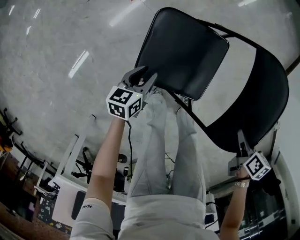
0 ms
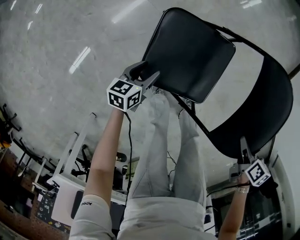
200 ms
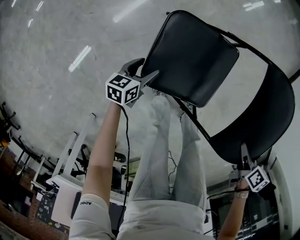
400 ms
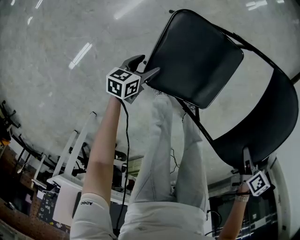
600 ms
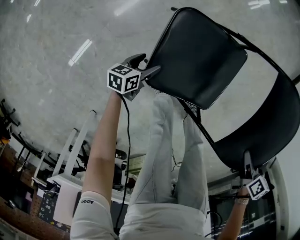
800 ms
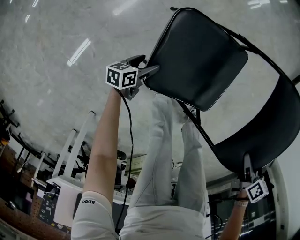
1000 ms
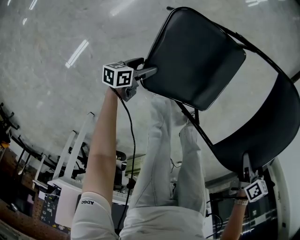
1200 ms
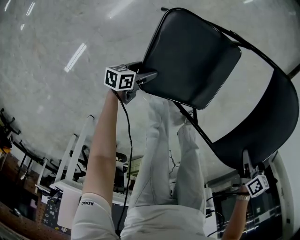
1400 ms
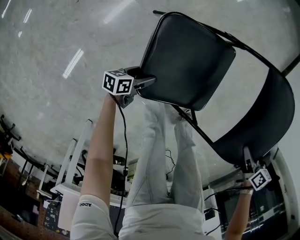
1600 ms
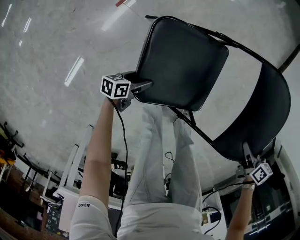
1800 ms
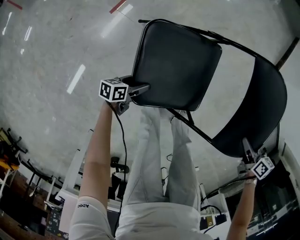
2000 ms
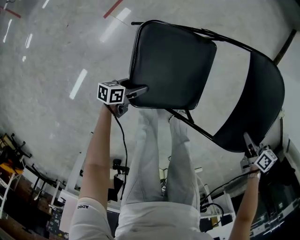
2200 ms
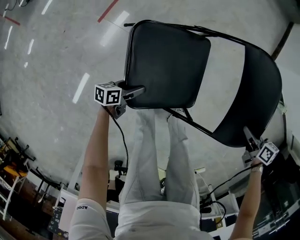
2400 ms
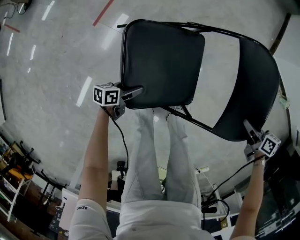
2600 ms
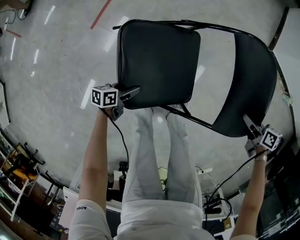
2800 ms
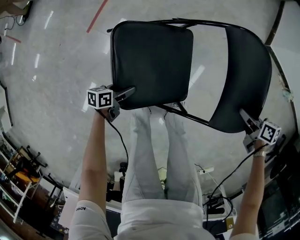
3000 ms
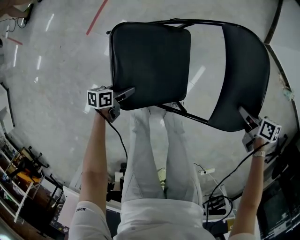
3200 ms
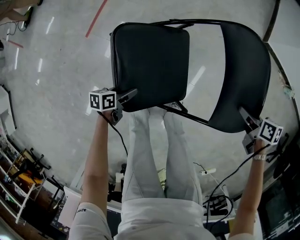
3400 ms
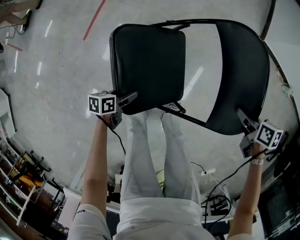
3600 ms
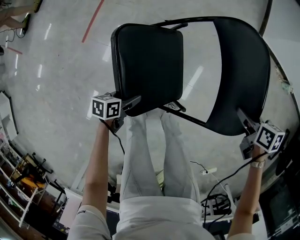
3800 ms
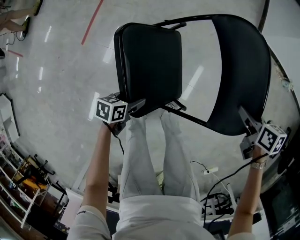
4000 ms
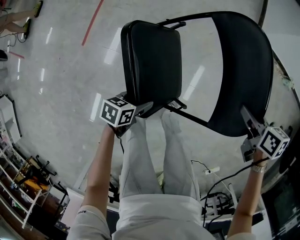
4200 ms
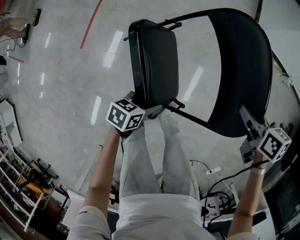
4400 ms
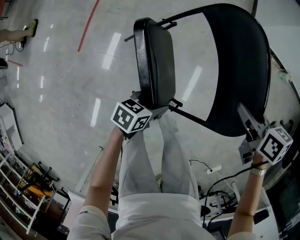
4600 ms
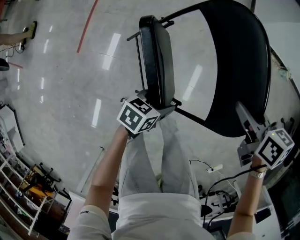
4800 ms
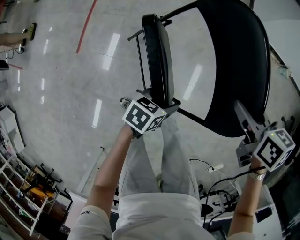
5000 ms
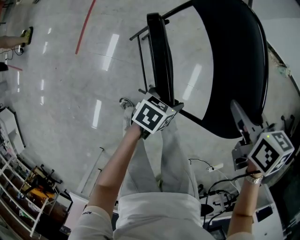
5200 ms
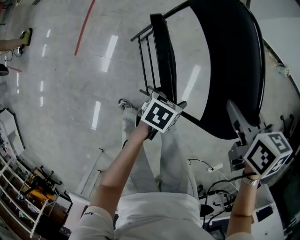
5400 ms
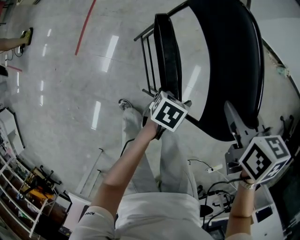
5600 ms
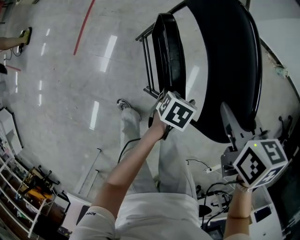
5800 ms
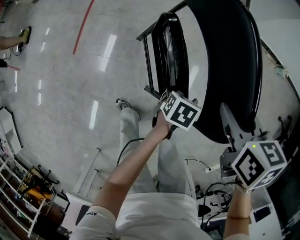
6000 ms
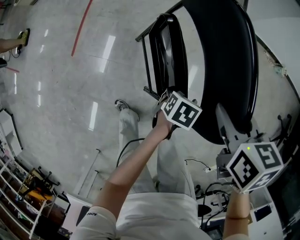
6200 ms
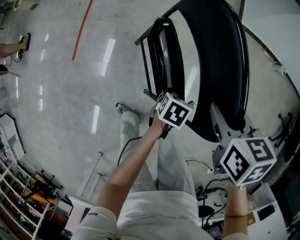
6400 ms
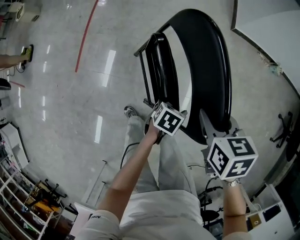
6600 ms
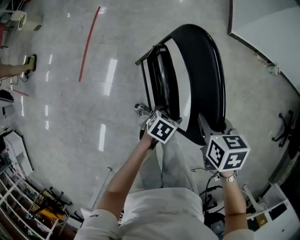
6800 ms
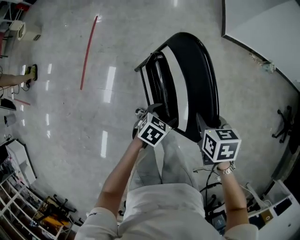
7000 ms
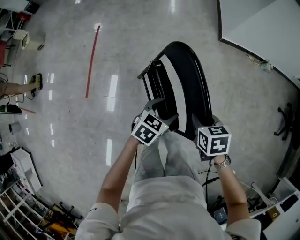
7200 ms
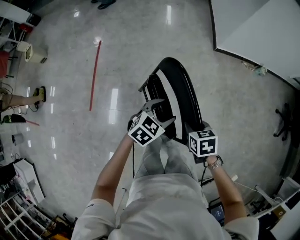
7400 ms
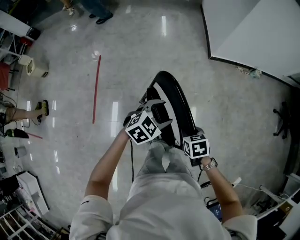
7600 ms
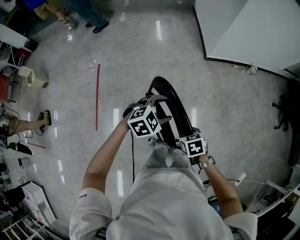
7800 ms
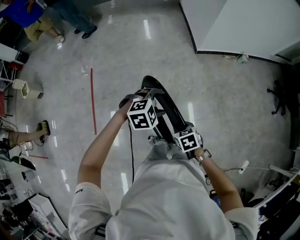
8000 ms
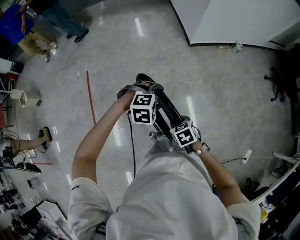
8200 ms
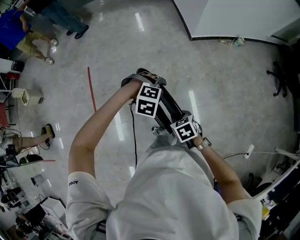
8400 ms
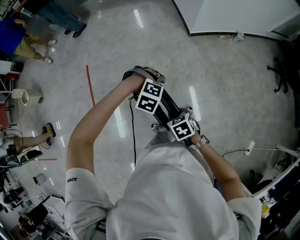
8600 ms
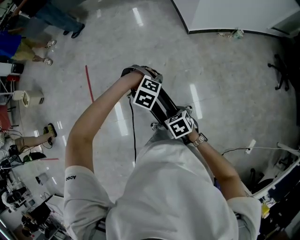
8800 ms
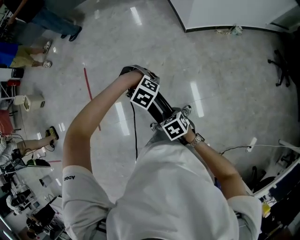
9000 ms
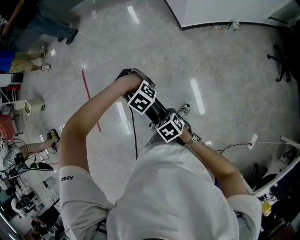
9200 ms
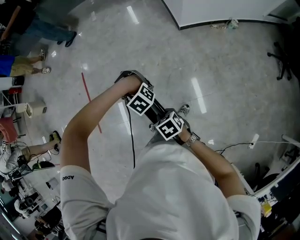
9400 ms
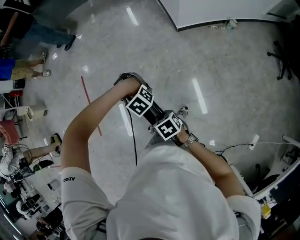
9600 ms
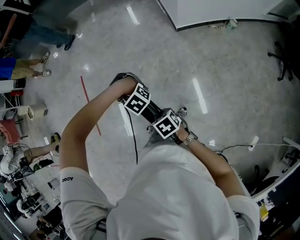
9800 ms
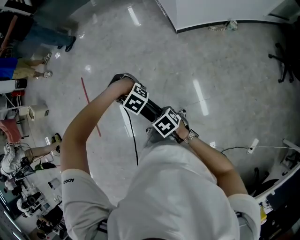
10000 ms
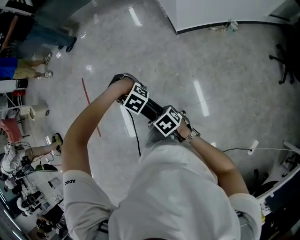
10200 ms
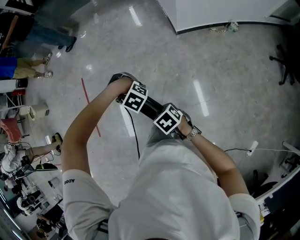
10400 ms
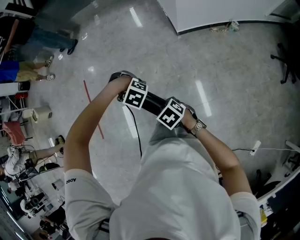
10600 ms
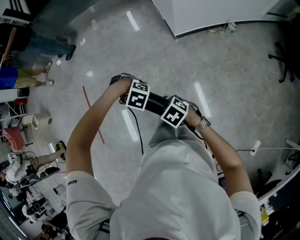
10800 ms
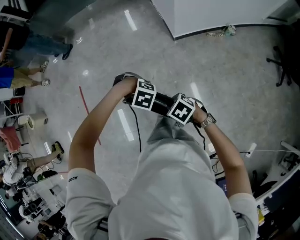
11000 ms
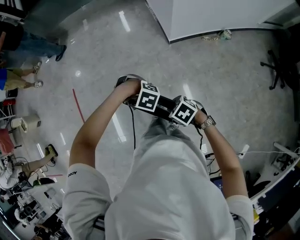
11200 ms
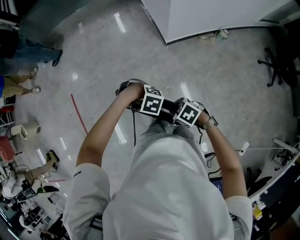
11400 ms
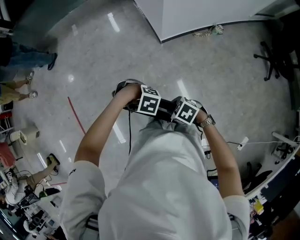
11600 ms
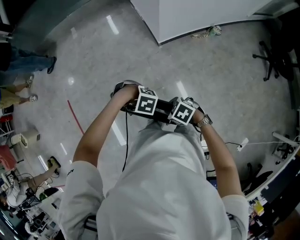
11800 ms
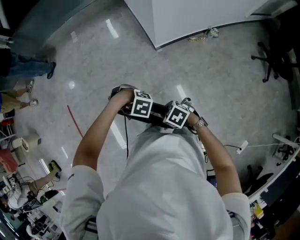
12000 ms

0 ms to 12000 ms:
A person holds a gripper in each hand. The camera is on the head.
0 ms to 1600 ms: The left gripper shifts approximately 15 cm downward, rotates some 30 degrees, and opens.
1600 ms to 3000 ms: The left gripper shifts by approximately 10 cm. Meanwhile the right gripper changes place by about 15 cm.
3000 ms to 4400 ms: The left gripper shifts by approximately 30 cm, and swivels some 30 degrees, while the right gripper heads upward, covering some 15 cm.
4400 ms to 6000 ms: The left gripper travels to the right and forward by about 20 cm; the right gripper travels upward by some 10 cm.
6000 ms to 7600 ms: The right gripper shifts about 5 cm to the left. Meanwhile the left gripper goes roughly 30 cm upward and to the left, and twists some 60 degrees clockwise, seen from behind.
7600 ms to 9000 ms: The left gripper moves roughly 5 cm, and points its fingers approximately 40 degrees further downward.
9000 ms to 10400 ms: The right gripper moves approximately 15 cm; the left gripper ends up roughly 10 cm from where it was.
10400 ms to 12000 ms: The left gripper ends up some 20 cm from where it was; the right gripper moves approximately 20 cm.

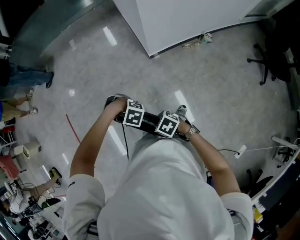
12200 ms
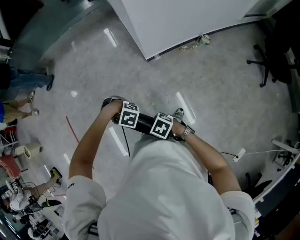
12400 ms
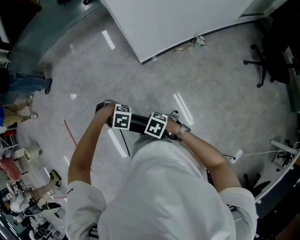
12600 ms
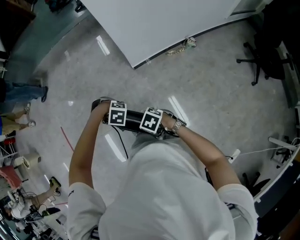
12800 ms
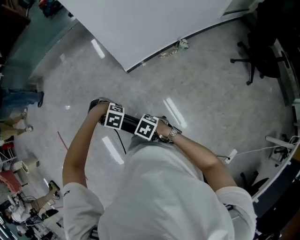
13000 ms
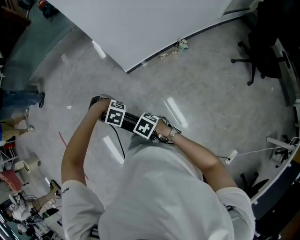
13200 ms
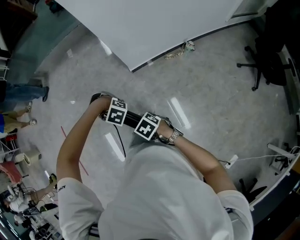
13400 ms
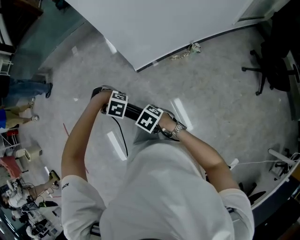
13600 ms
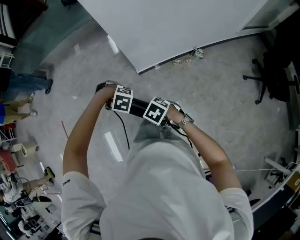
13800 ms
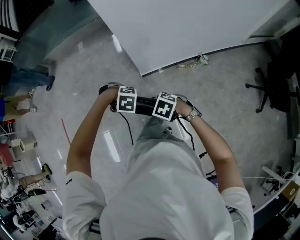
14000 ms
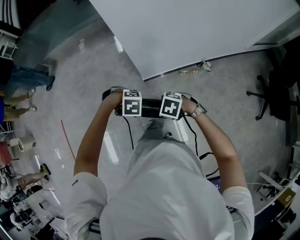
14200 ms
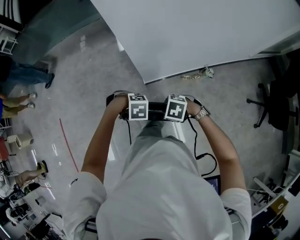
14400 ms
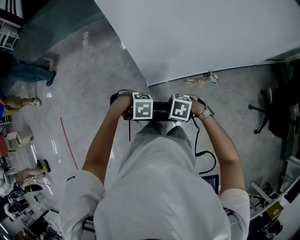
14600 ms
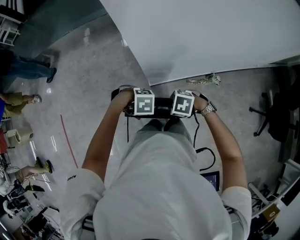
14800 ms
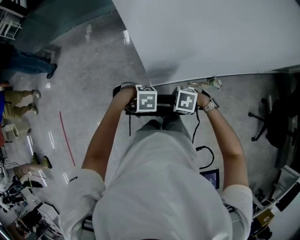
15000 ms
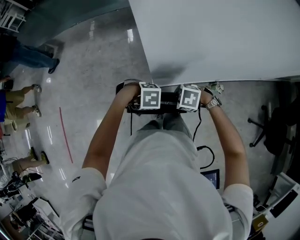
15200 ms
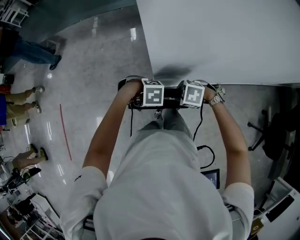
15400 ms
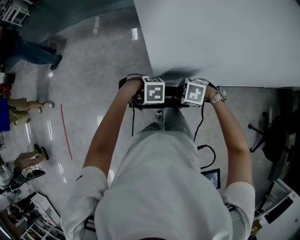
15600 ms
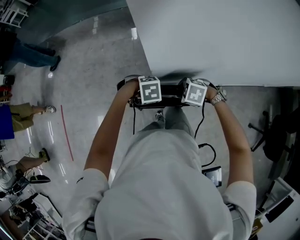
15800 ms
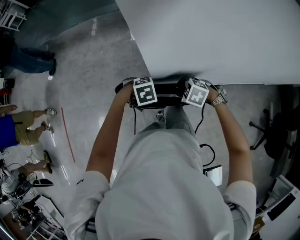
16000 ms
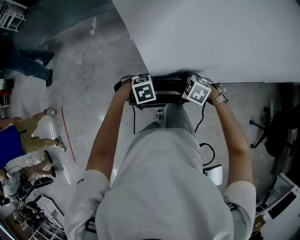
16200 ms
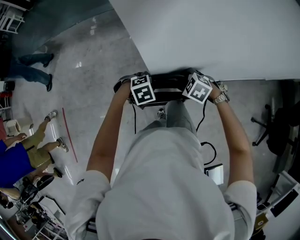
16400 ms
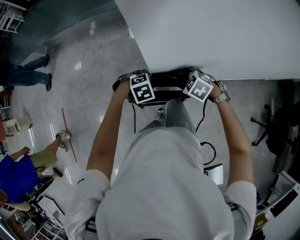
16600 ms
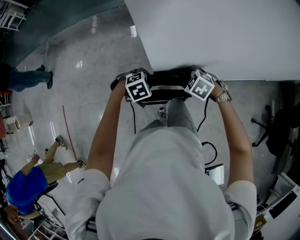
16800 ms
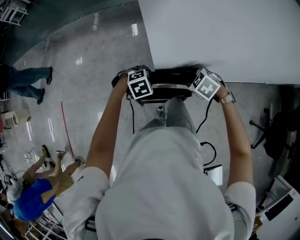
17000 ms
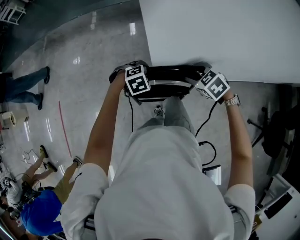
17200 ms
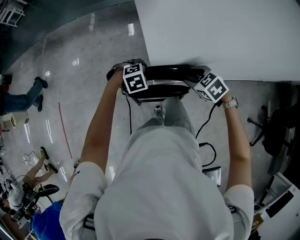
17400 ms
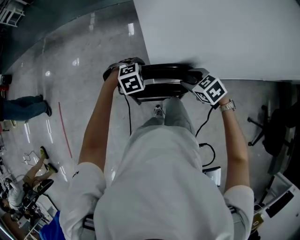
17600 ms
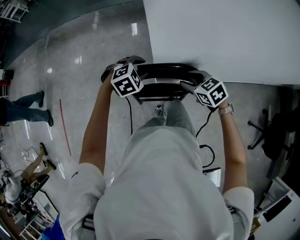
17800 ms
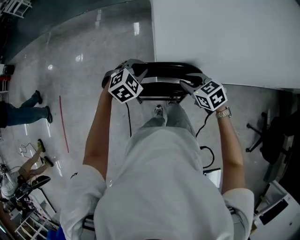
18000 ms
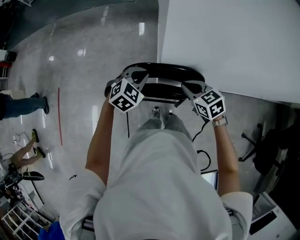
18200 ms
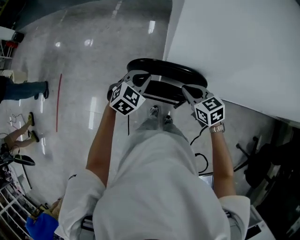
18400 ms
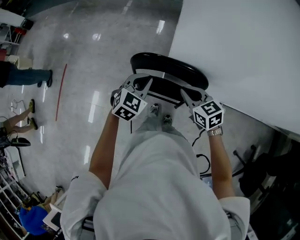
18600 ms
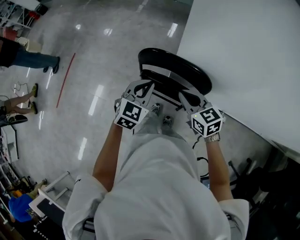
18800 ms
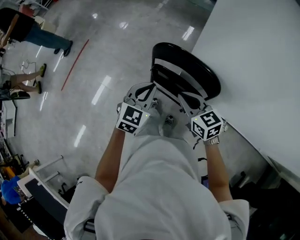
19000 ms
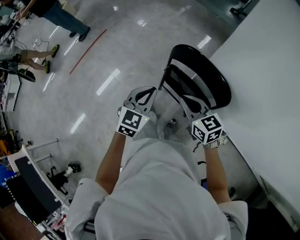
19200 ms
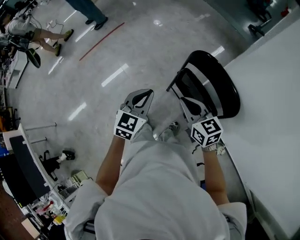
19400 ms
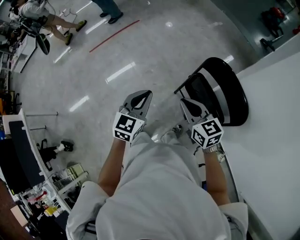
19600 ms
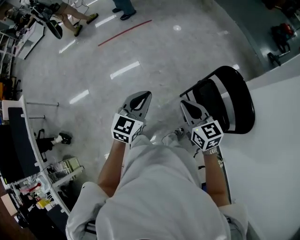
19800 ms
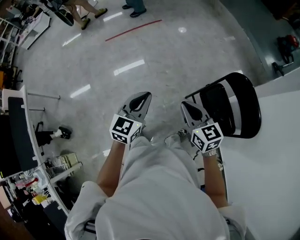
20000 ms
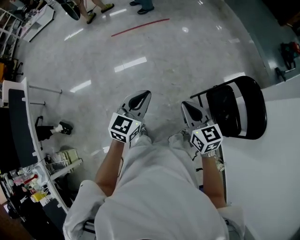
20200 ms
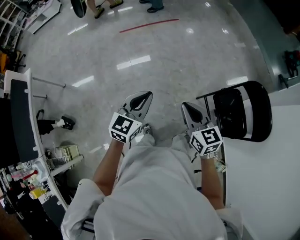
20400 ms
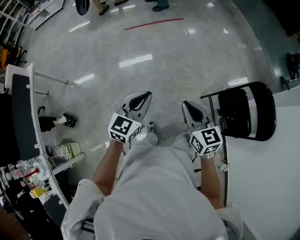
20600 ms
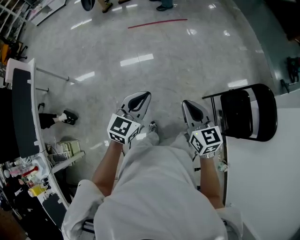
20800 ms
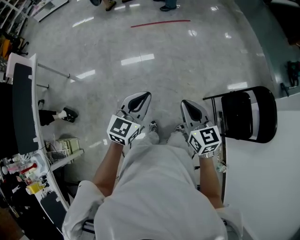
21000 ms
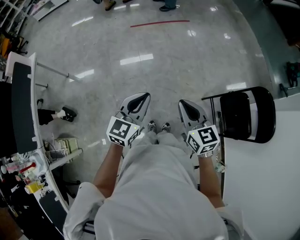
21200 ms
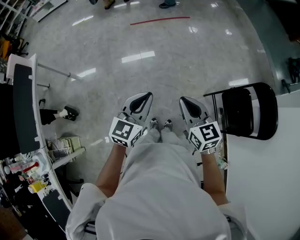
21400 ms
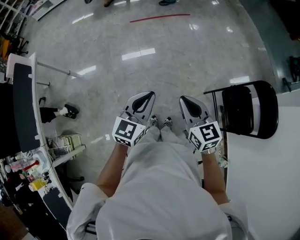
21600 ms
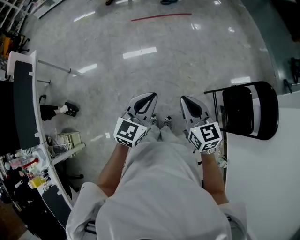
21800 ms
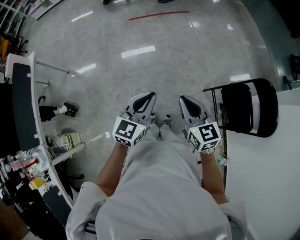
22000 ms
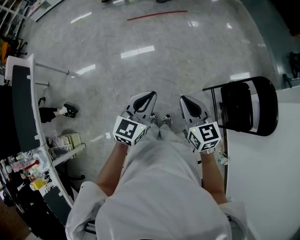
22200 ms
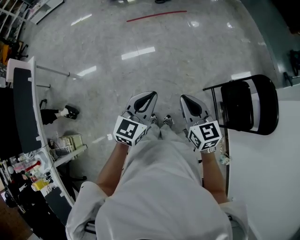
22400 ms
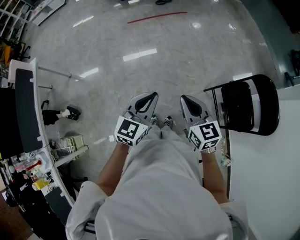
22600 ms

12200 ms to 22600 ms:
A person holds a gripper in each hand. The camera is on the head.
12200 ms to 13600 ms: The right gripper moves roughly 25 cm. The left gripper ends up roughly 25 cm from where it was.
13600 ms to 15200 ms: The right gripper shifts by roughly 35 cm, and rotates about 40 degrees. Meanwhile the left gripper shifts by approximately 30 cm, and turns by roughly 40 degrees.
15200 ms to 16600 ms: The right gripper ends up approximately 15 cm from where it was, changes its angle by some 20 degrees, and opens its fingers, while the left gripper ends up roughly 15 cm from where it was, and rotates roughly 30 degrees.
16600 ms to 18200 ms: The two grippers go about 10 cm upward. The left gripper turns by roughly 40 degrees, while the right gripper swivels about 30 degrees, and closes.
18200 ms to 19600 ms: The left gripper moves roughly 40 cm, and turns by about 80 degrees. The right gripper ends up approximately 30 cm from where it was, and changes its angle by about 50 degrees.
19600 ms to 21200 ms: The pair of grippers is taken to the left, some 50 cm. The left gripper turns by some 20 degrees.
21200 ms to 22600 ms: The two grippers go approximately 10 cm to the right.

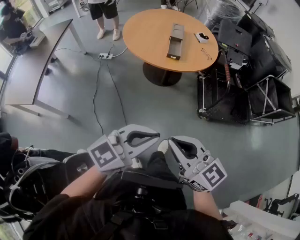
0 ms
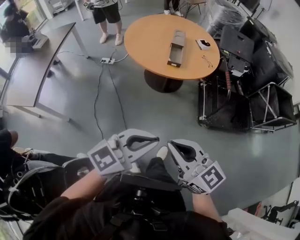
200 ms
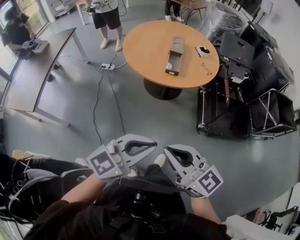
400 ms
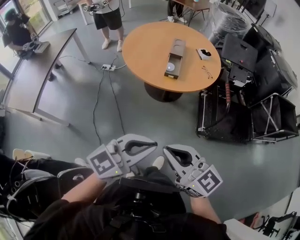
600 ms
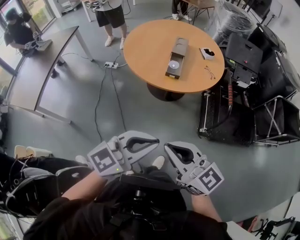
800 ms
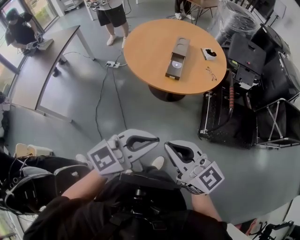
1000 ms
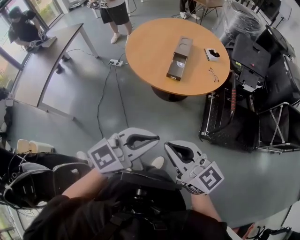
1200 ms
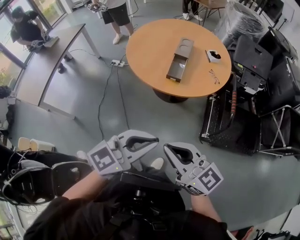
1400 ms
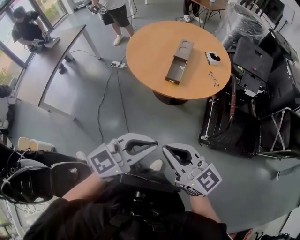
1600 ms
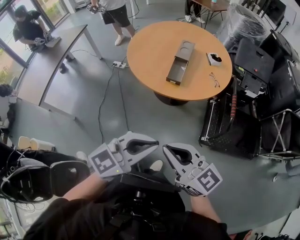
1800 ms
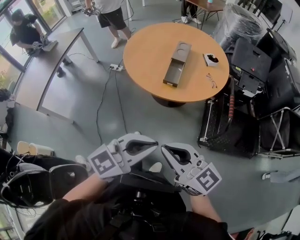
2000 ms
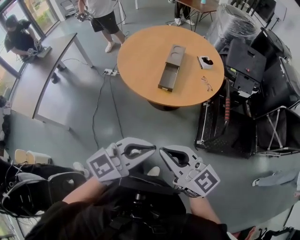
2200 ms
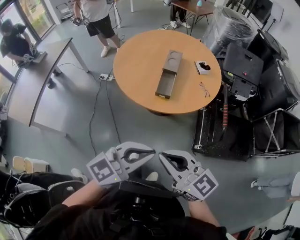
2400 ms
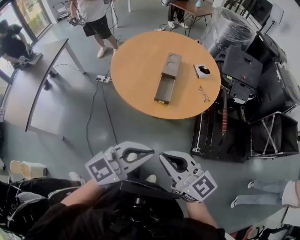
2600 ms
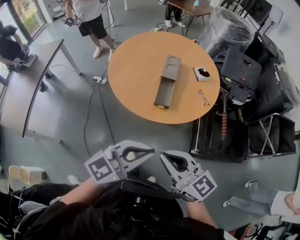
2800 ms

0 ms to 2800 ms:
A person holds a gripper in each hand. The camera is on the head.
0 ms to 1400 ms: Both grippers travel together forward and to the right, approximately 25 cm.
1400 ms to 2800 ms: Both grippers travel together forward, roughly 20 cm.
